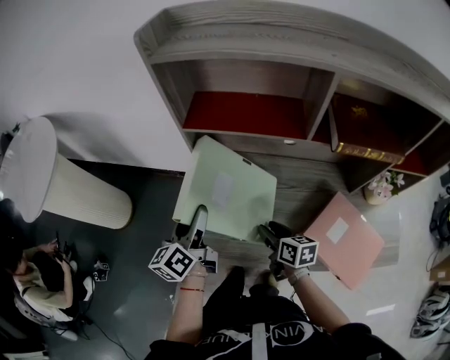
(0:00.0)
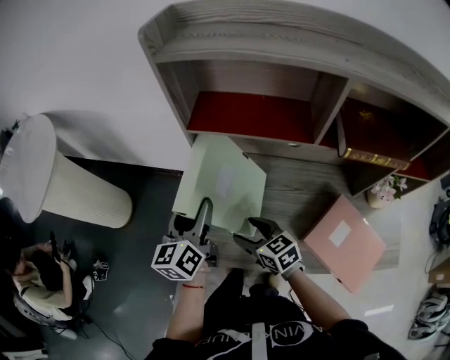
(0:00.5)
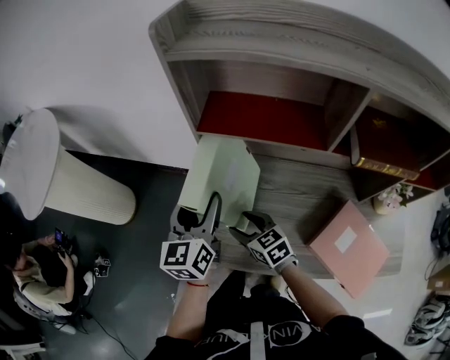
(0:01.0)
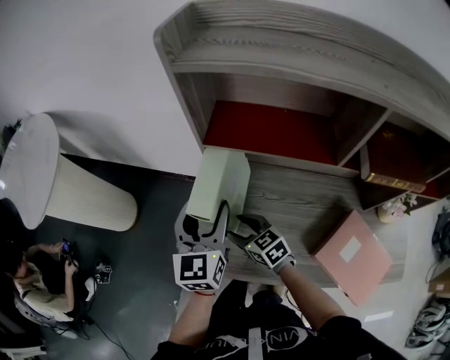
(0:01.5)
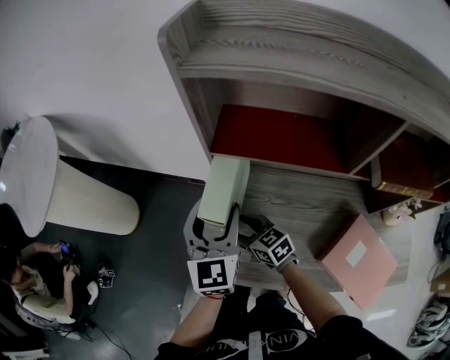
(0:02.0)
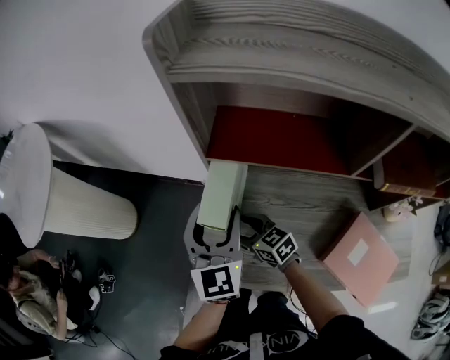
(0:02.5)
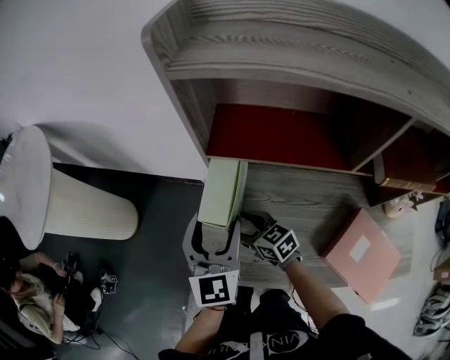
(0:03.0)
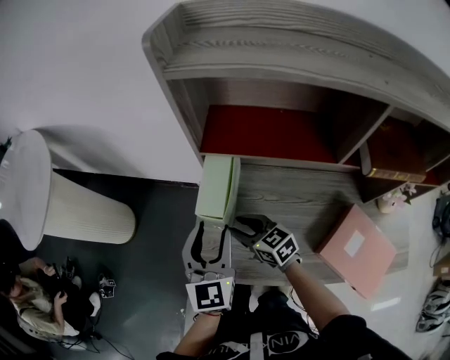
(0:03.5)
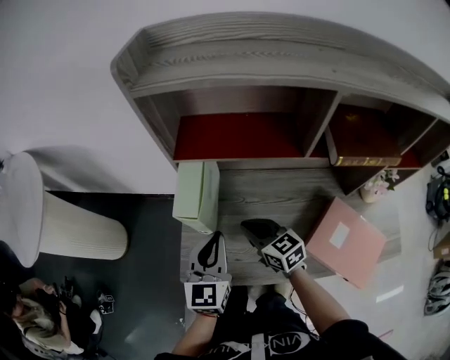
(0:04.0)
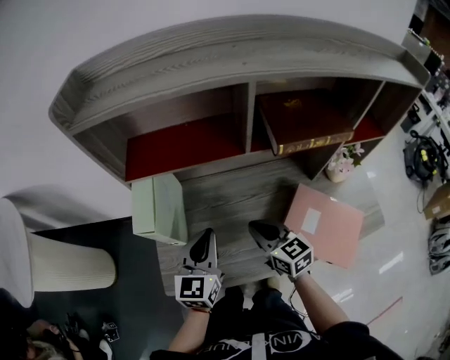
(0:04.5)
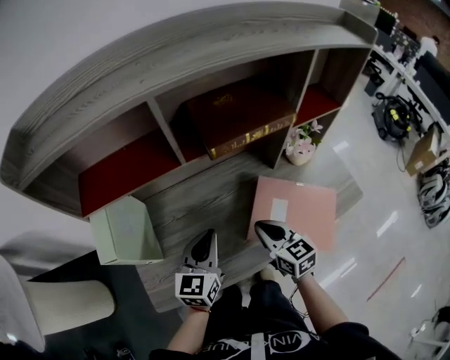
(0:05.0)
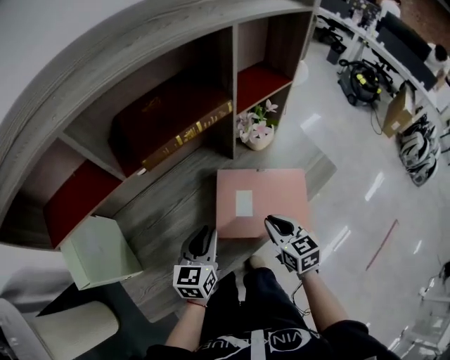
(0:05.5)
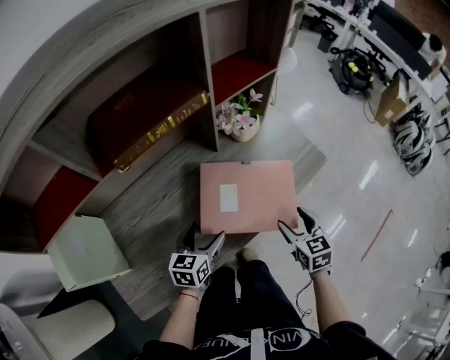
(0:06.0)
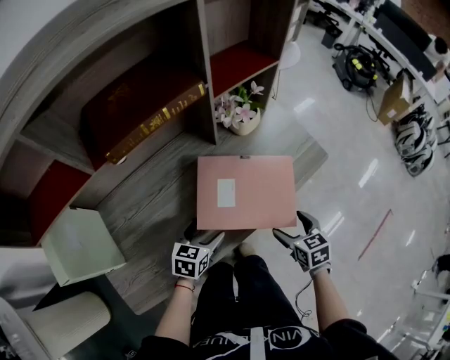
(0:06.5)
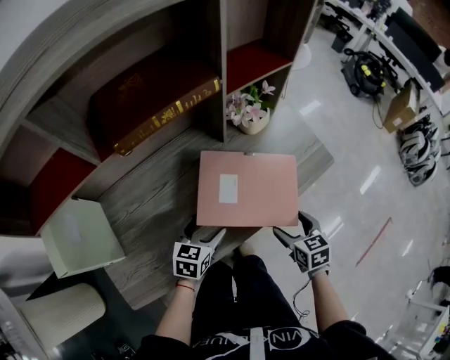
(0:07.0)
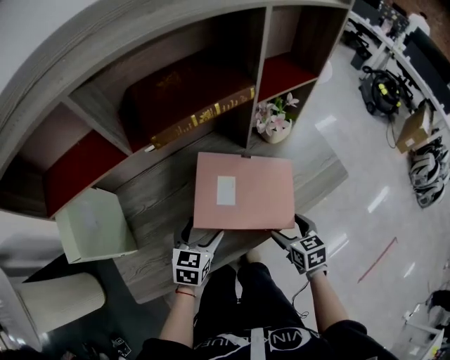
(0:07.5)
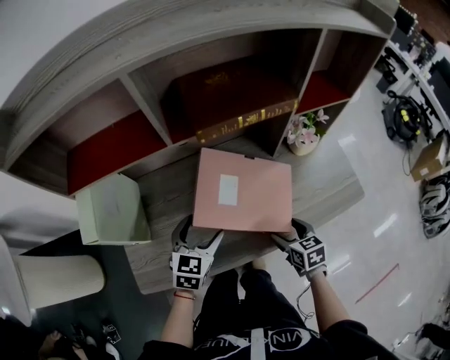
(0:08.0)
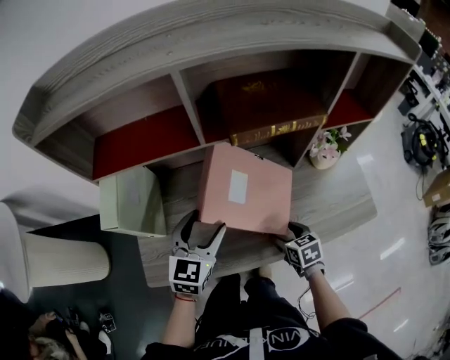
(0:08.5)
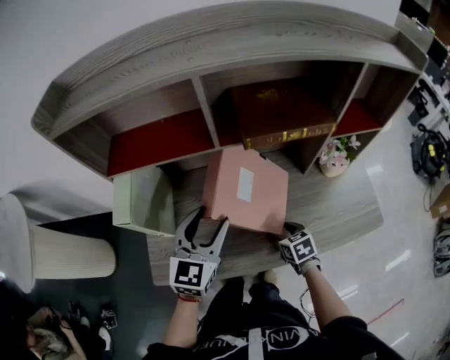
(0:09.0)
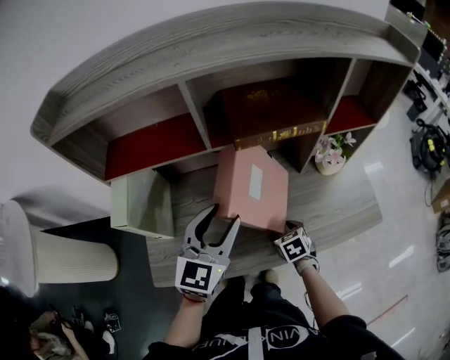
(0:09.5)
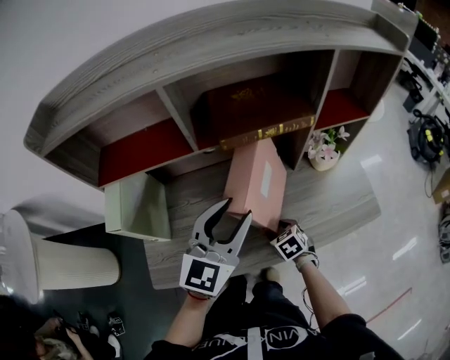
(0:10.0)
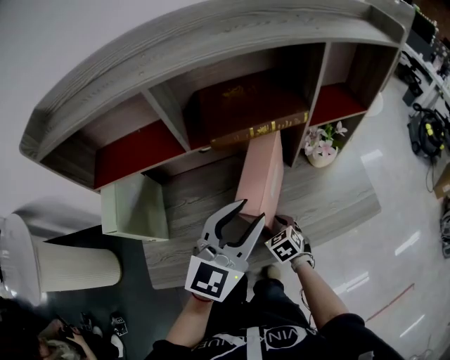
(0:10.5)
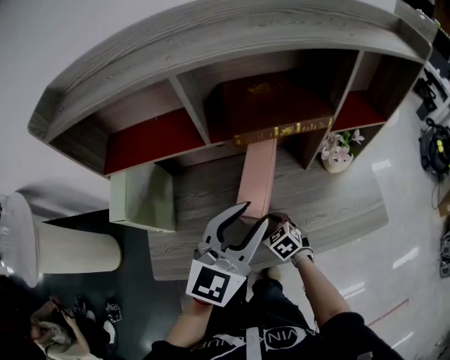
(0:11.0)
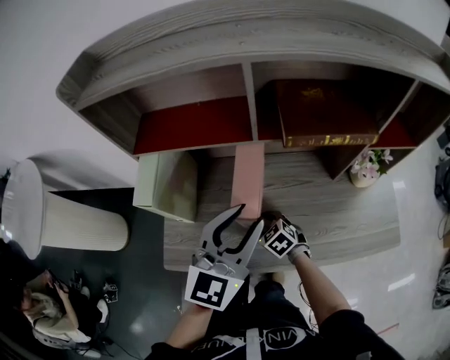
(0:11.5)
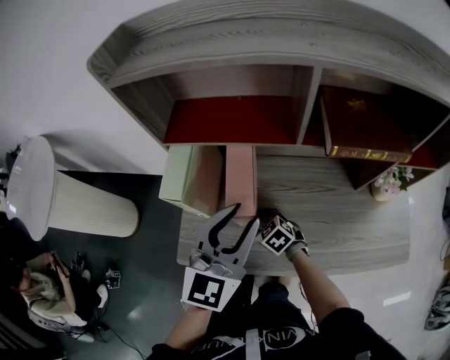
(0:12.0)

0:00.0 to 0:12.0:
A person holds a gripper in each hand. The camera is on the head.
0:00.0 to 0:02.0: The left gripper shifts roughly 10 cm forward and upward, and rotates around the line of its fingers by some 50 degrees, clockwise from behind, while the right gripper heads forward and to the left, covering roughly 20 cm, and turns by approximately 40 degrees.
0:02.0 to 0:04.0: The right gripper travels to the right, backward and upward by roughly 10 cm, and closes. The left gripper heads backward, covering about 10 cm, and closes its fingers.
0:04.0 to 0:06.0: The right gripper ends up roughly 50 cm from where it was, swivels about 60 degrees, and opens its fingers. The left gripper shifts by roughly 35 cm, turns by some 60 degrees, and opens.
0:06.0 to 0:08.0: The left gripper shifts by roughly 15 cm, and rotates approximately 20 degrees. The right gripper ends up some 15 cm from where it was, and rotates roughly 30 degrees.
0:08.0 to 0:10.0: The left gripper shifts some 20 cm upward, rotates about 30 degrees, and closes. The right gripper heads to the left, downward and forward, covering some 10 cm, and turns by roughly 30 degrees.
0:10.0 to 0:12.0: The right gripper ends up roughly 25 cm from where it was, and turns by roughly 40 degrees. The left gripper changes place by about 15 cm, and changes its angle by some 20 degrees.

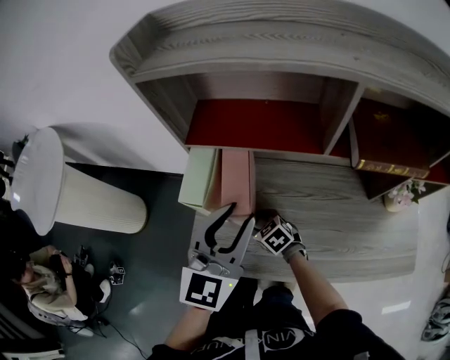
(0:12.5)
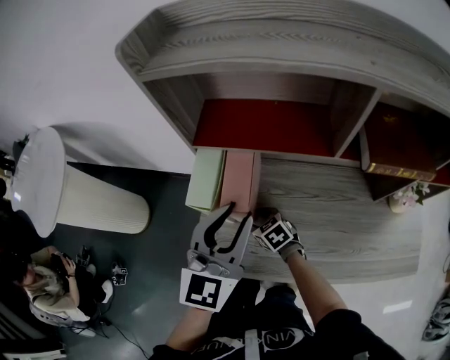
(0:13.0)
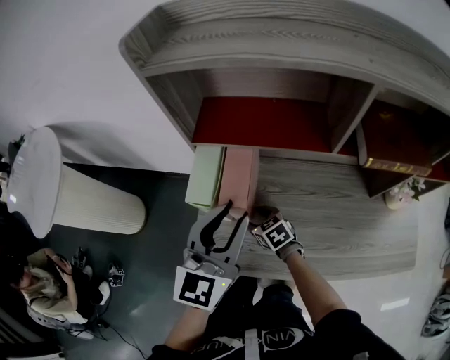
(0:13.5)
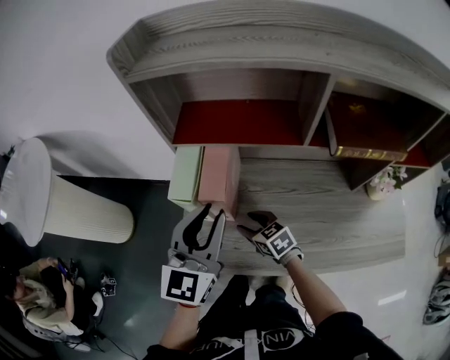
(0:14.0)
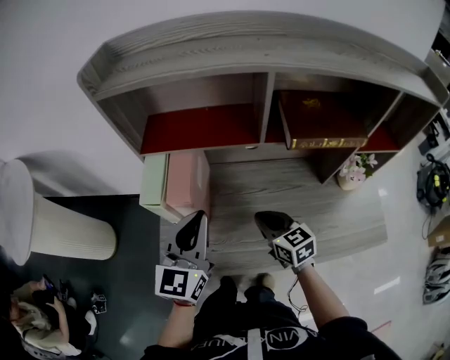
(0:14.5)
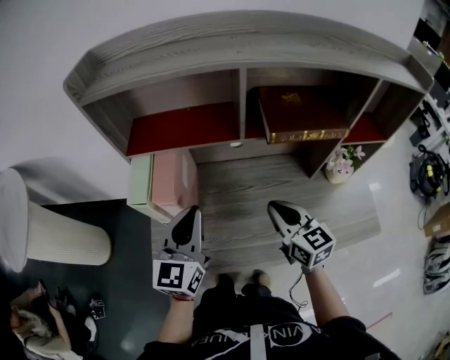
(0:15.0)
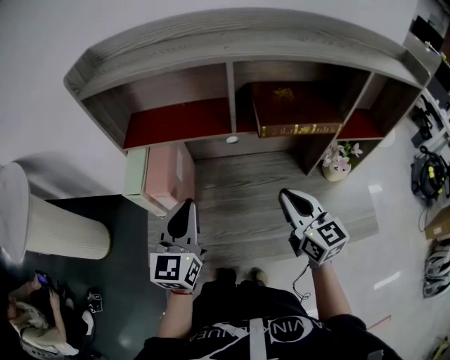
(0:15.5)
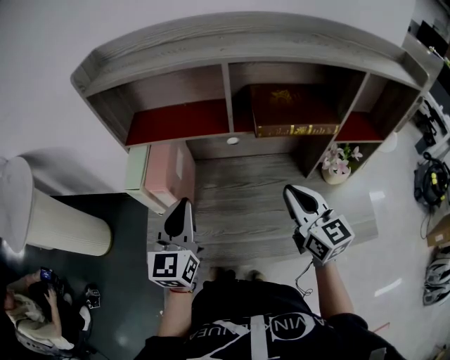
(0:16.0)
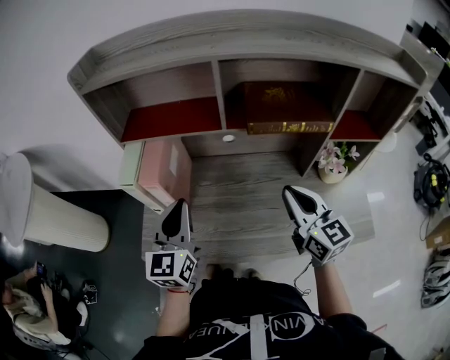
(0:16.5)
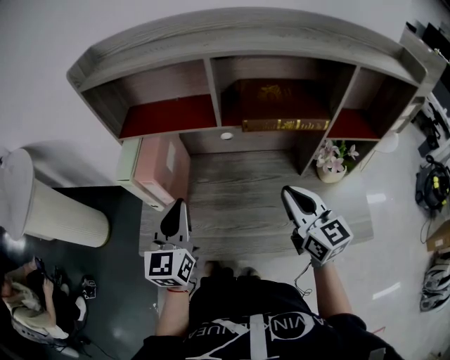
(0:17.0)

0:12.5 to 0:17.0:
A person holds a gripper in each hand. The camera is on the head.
0:12.5 to 0:14.5: The right gripper heads upward, to the right and backward, covering approximately 20 cm, rotates about 40 degrees, and closes up.
0:14.5 to 0:17.0: The right gripper shifts some 20 cm to the right and upward, and changes its angle by approximately 20 degrees, while the left gripper shifts by approximately 5 cm.

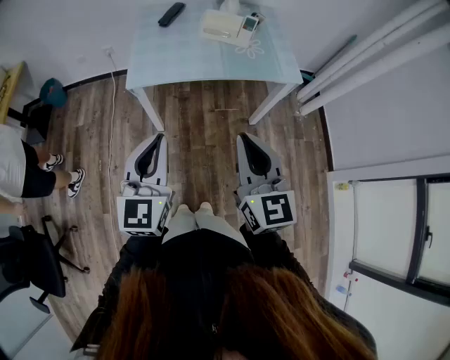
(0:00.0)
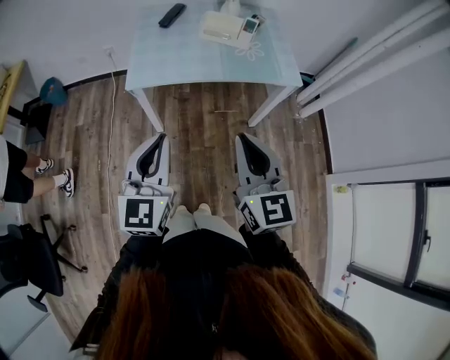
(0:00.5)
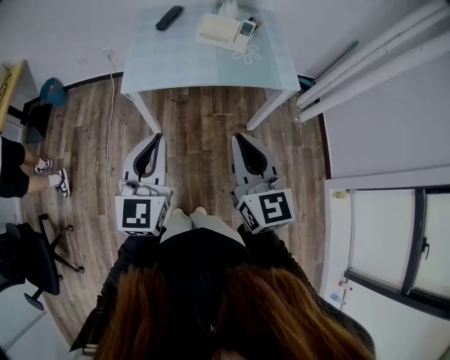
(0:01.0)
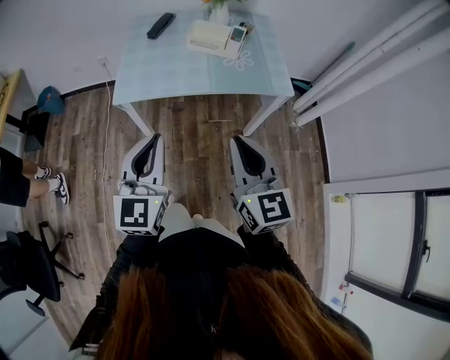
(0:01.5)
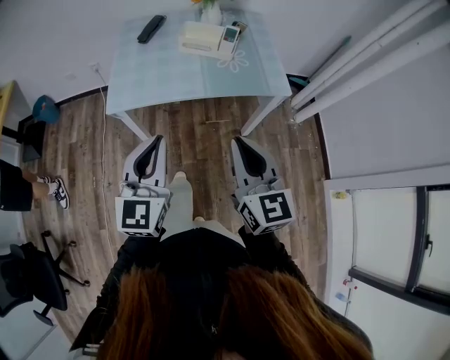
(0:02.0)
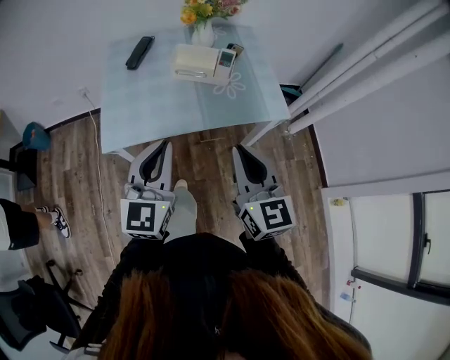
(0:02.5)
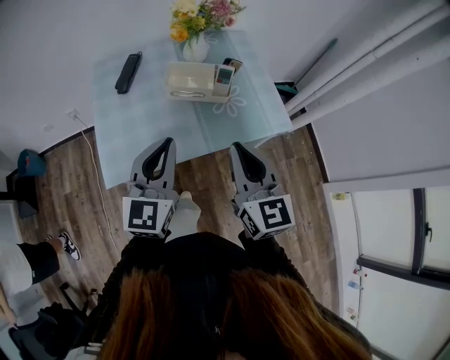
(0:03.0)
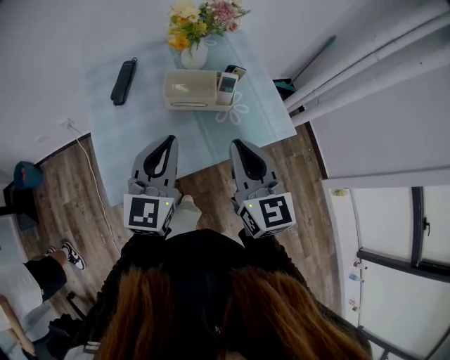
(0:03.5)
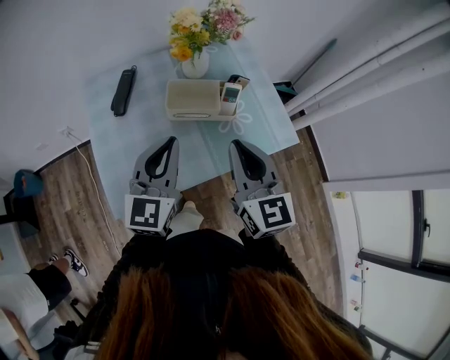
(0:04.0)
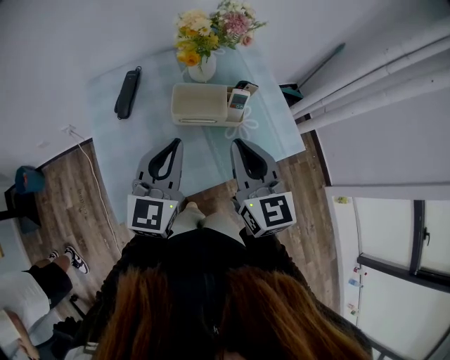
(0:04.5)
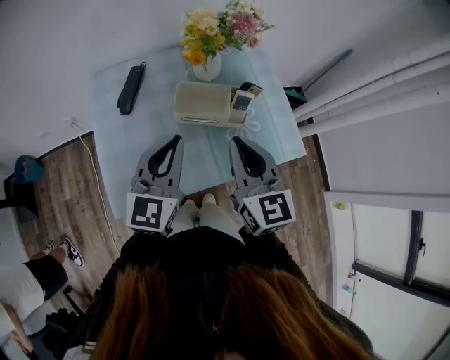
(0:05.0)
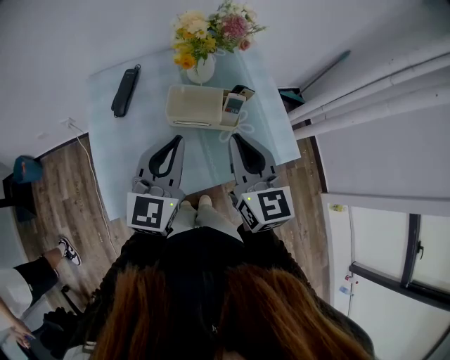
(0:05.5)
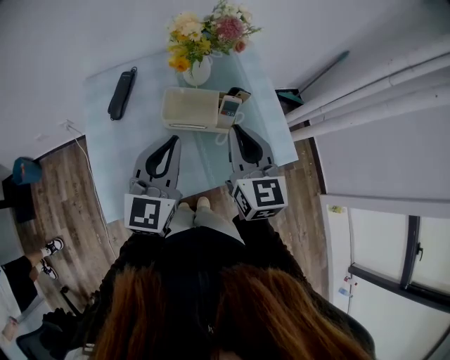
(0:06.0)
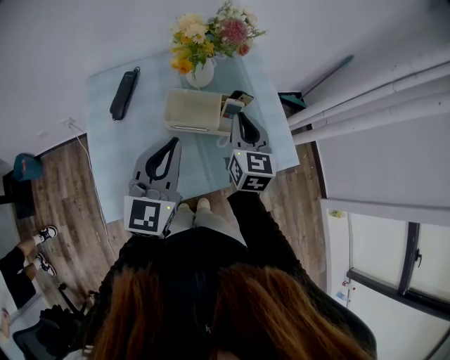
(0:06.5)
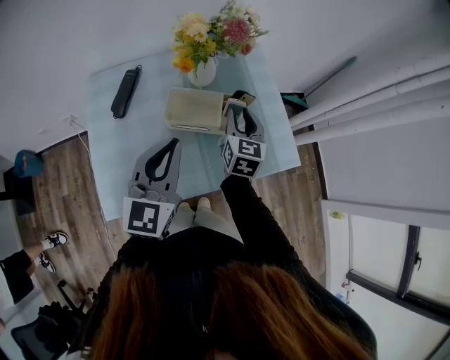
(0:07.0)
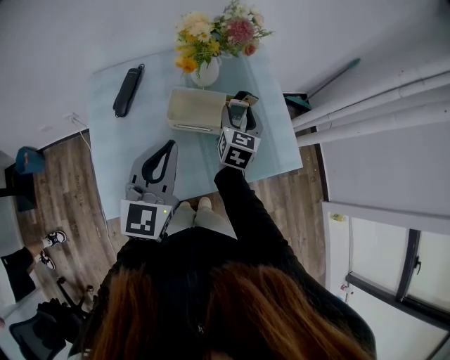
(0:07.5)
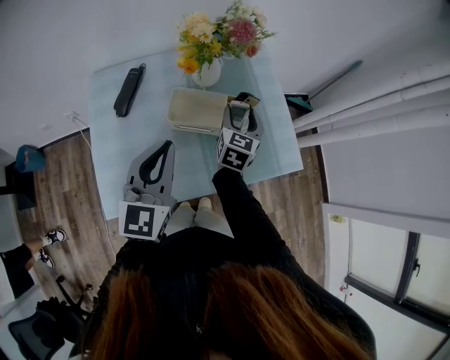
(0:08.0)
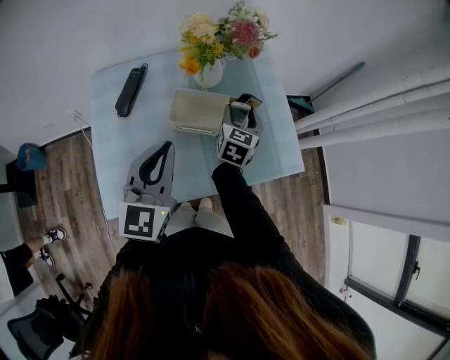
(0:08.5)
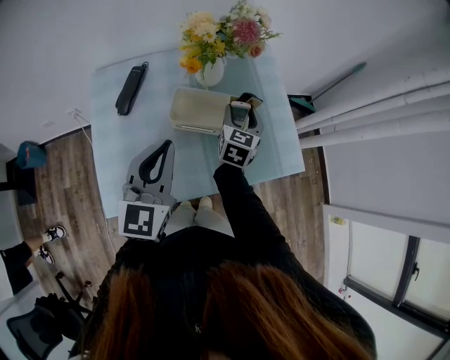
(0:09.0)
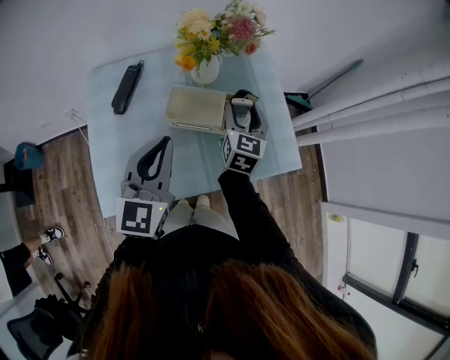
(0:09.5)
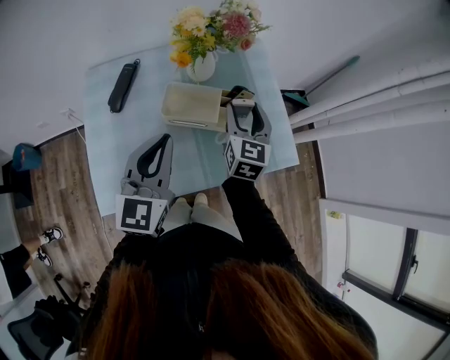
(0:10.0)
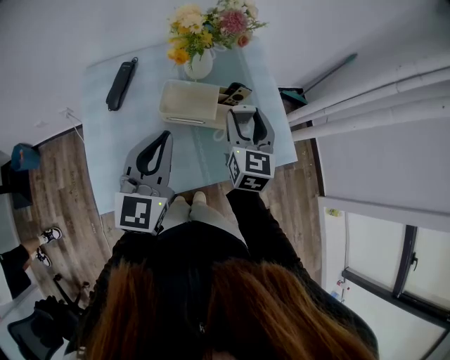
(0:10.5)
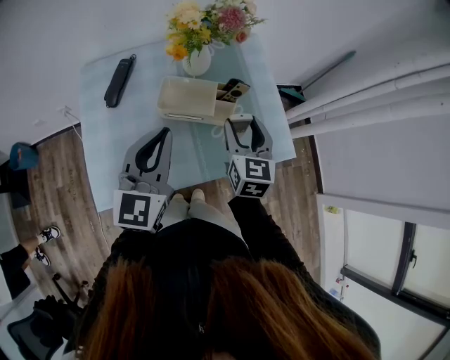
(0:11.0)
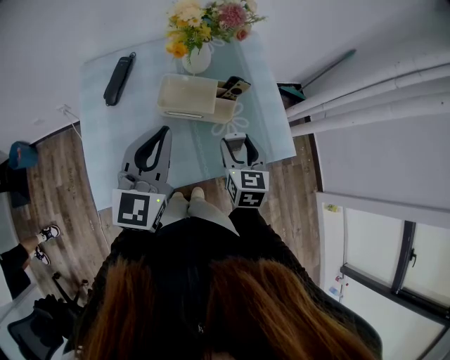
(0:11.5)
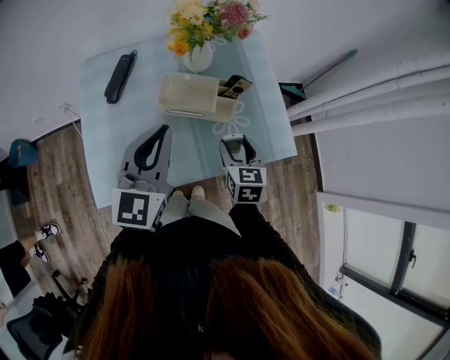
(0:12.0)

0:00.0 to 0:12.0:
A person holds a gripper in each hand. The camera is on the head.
0:00.0 to 0:02.0: Both grippers move forward and to the right, about 10 cm.
0:02.0 to 0:04.0: Both grippers move forward, some 30 cm.
0:04.0 to 0:06.0: The right gripper travels forward by about 10 cm. Meanwhile the left gripper changes place by about 5 cm.
0:06.0 to 0:08.0: The right gripper goes about 20 cm downward and forward, changes its angle by roughly 20 degrees, and opens its fingers.
0:08.0 to 0:10.0: The right gripper is displaced upward by approximately 5 cm.
0:10.0 to 0:12.0: The right gripper shifts about 15 cm backward and downward.
